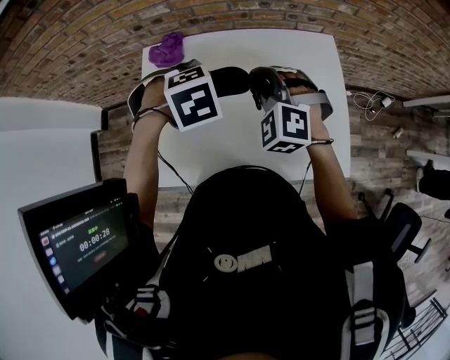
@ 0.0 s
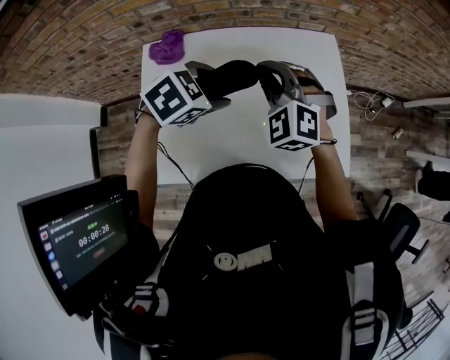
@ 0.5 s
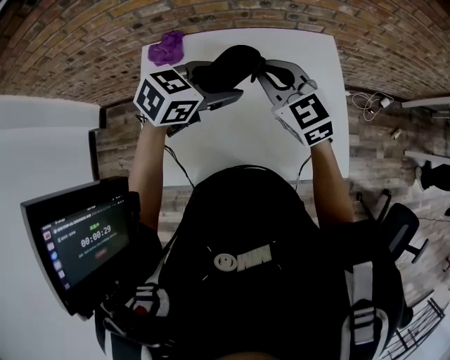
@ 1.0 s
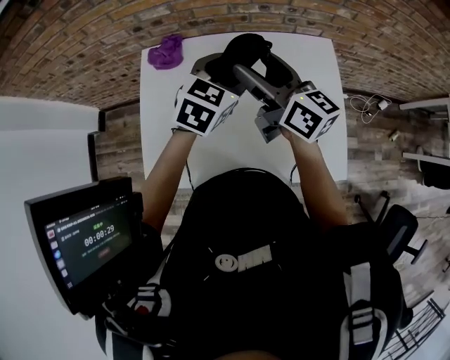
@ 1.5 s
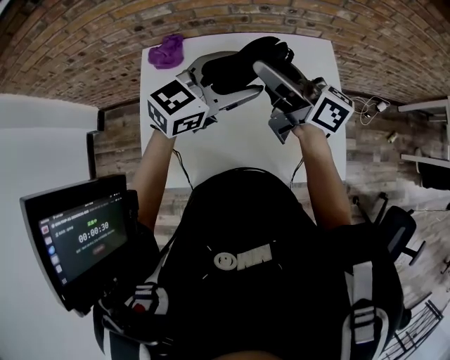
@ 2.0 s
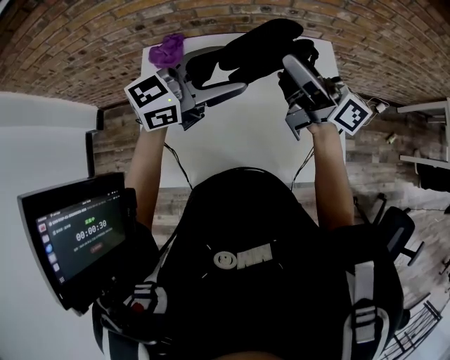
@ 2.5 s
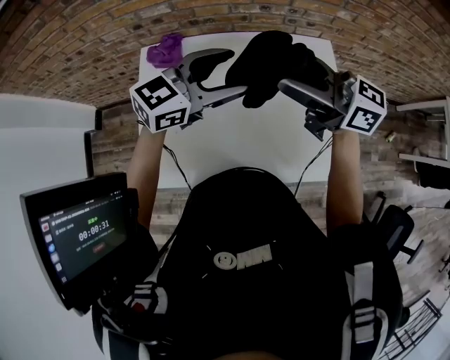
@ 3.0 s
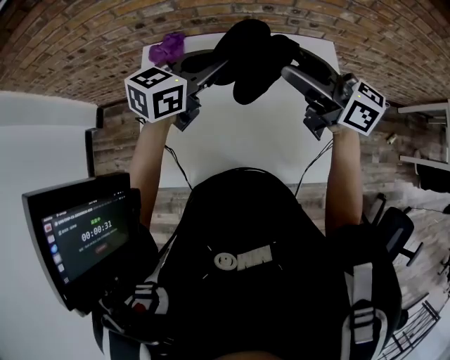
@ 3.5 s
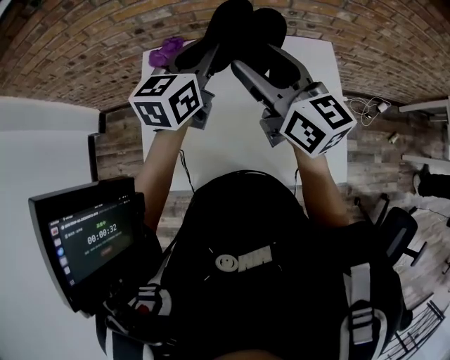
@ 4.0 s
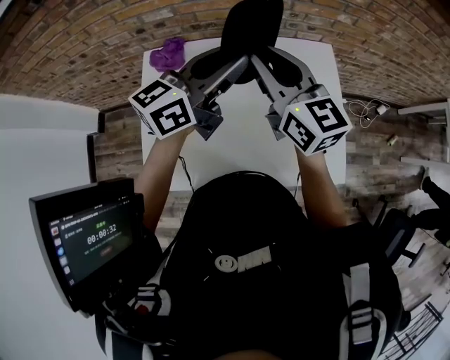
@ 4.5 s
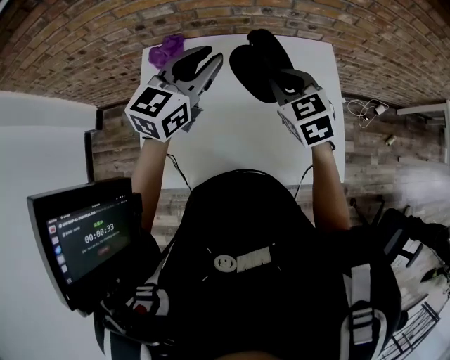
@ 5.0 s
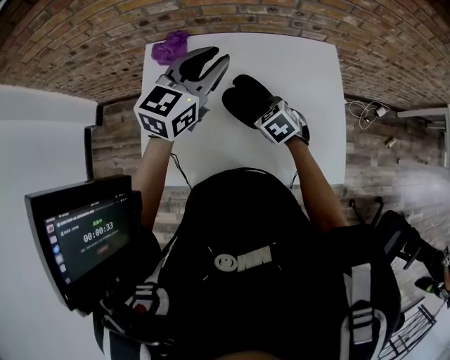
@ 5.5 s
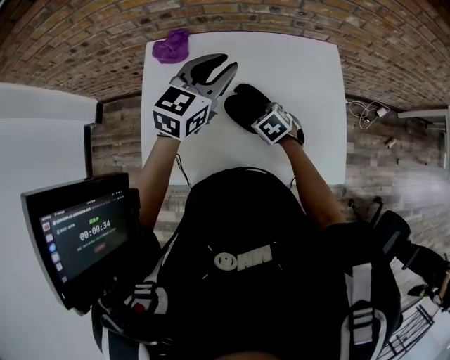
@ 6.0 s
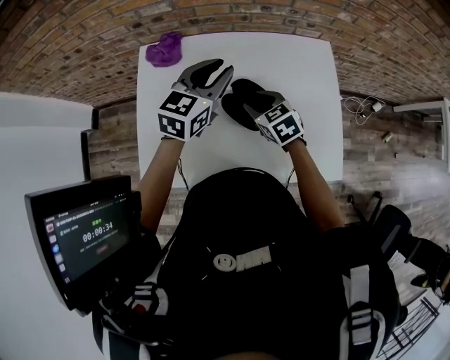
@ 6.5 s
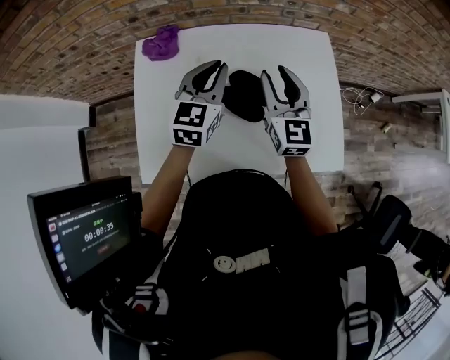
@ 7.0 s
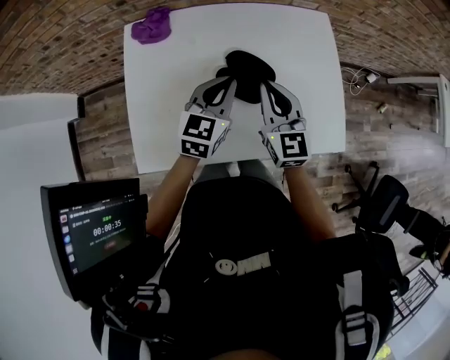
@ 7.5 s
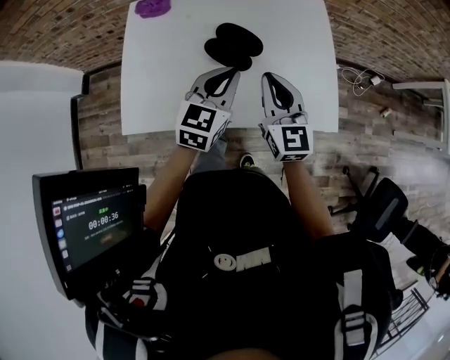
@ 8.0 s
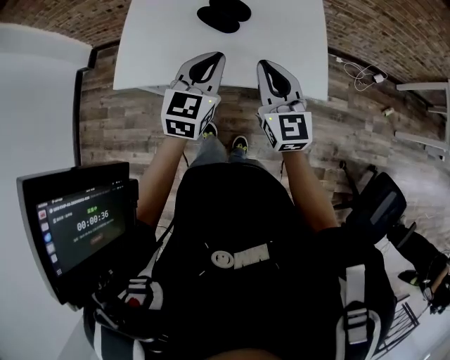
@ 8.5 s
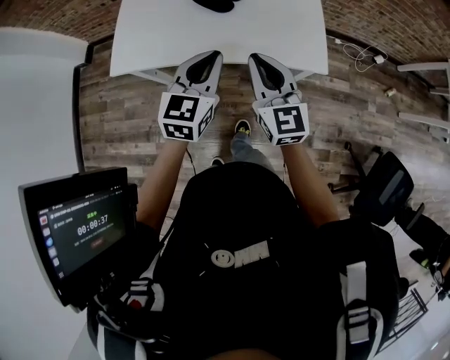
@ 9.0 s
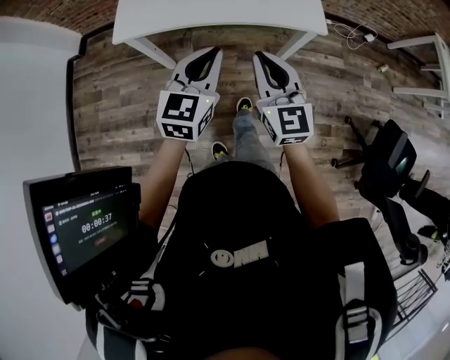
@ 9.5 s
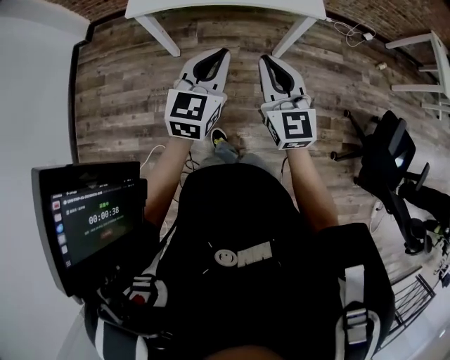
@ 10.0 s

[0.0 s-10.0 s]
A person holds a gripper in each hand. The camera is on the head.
0.0 to 2.0 s: Both grippers travel together upward, about 10 cm. The right gripper twists approximately 90 degrees clockwise, seen from behind, and opens up. The left gripper tips its fingers upward by about 70 degrees.
2.0 to 4.0 s: The right gripper changes its angle by approximately 30 degrees. The left gripper ends up about 10 cm from where it was, turns by approximately 40 degrees, and closes its fingers.
4.0 to 6.0 s: The left gripper shifts roughly 5 cm downward; the right gripper is displaced downward by about 35 cm, tips its fingers downward by roughly 70 degrees, and closes up.
6.0 to 8.0 s: The right gripper heads upward and backward, covering roughly 20 cm, and angles its fingers upward, by roughly 60 degrees; the left gripper travels backward, downward and to the right by approximately 20 cm.
8.0 to 10.0 s: The pair of grippers is taken backward, some 50 cm.

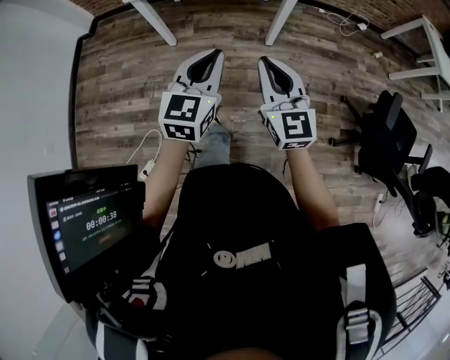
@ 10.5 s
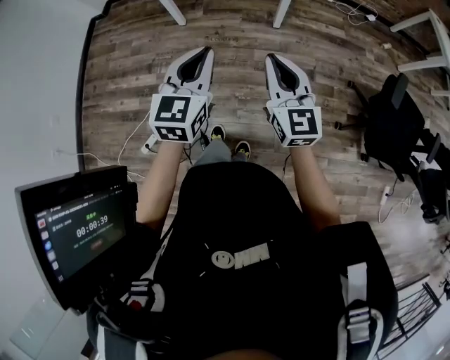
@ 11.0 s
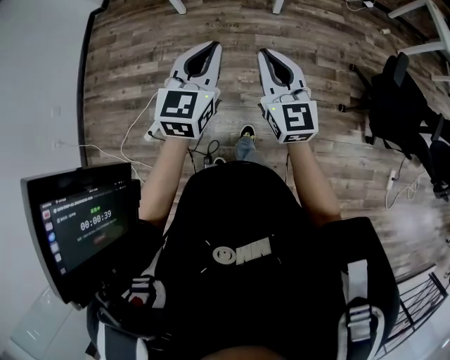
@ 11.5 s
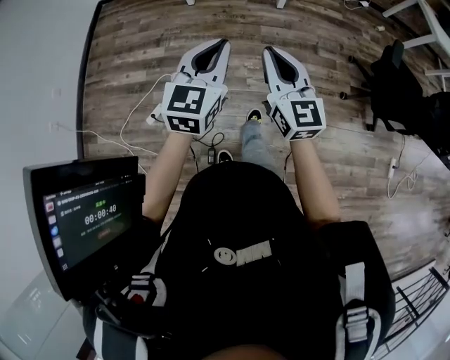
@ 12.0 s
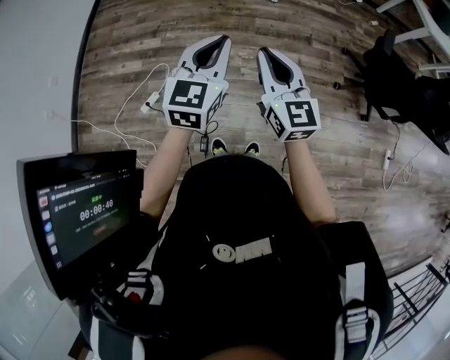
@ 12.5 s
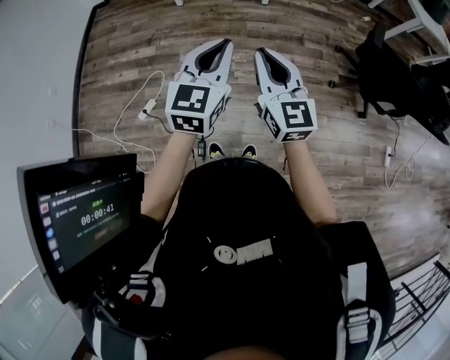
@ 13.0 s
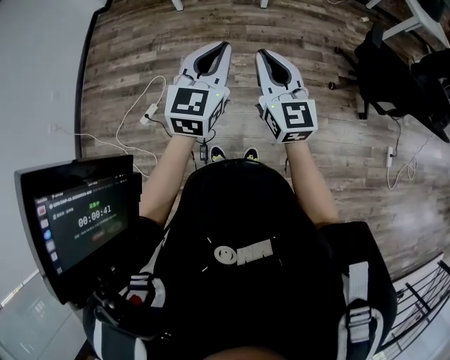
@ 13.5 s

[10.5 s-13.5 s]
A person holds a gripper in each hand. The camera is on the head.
10.5 to 12.0 s: The pair of grippers is taken backward, about 40 cm.
12.0 to 13.5 s: The left gripper shifts some 10 cm to the right and backward. Meanwhile the right gripper shifts roughly 10 cm backward and to the right.

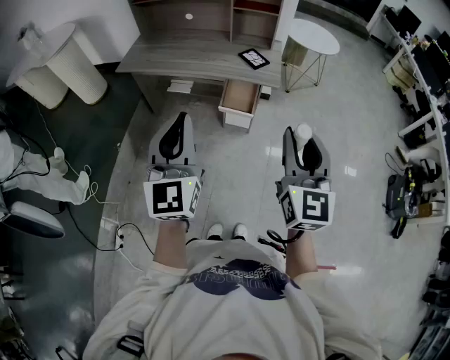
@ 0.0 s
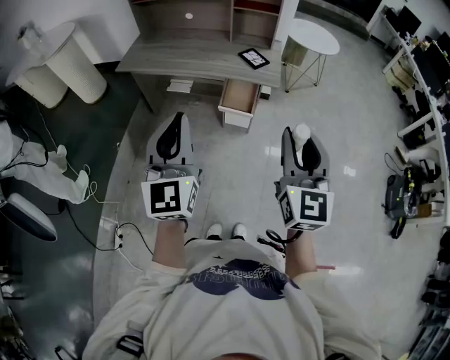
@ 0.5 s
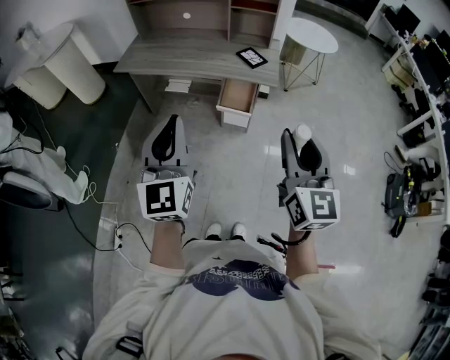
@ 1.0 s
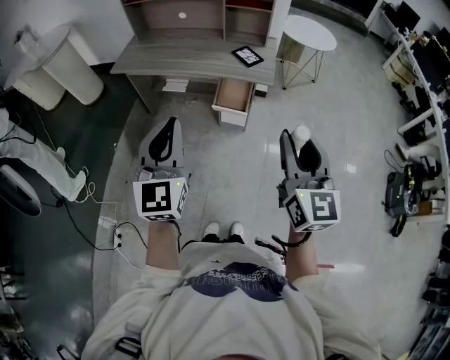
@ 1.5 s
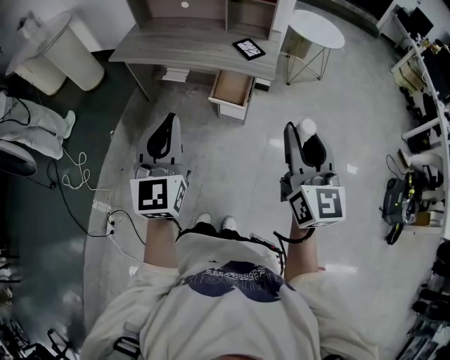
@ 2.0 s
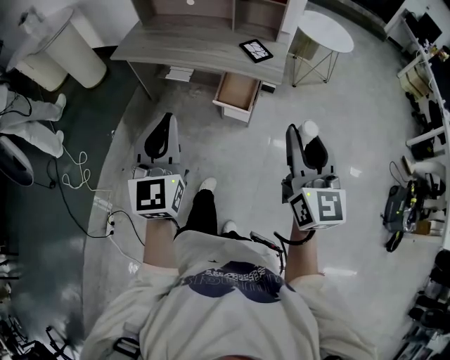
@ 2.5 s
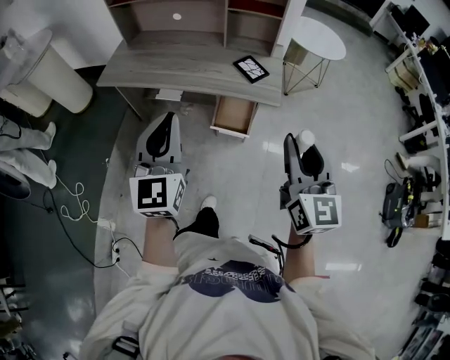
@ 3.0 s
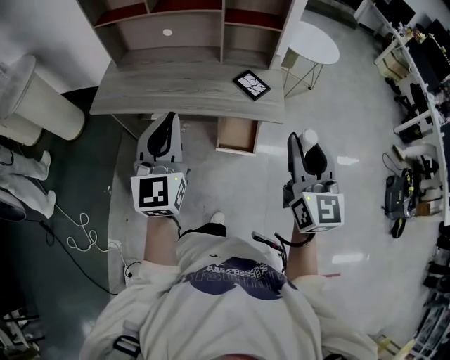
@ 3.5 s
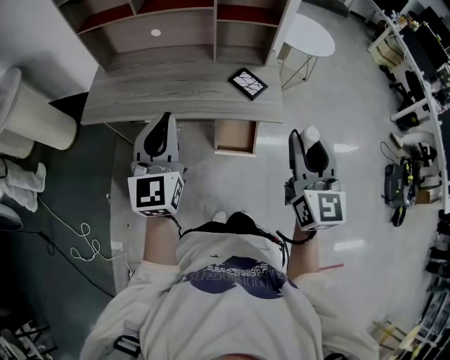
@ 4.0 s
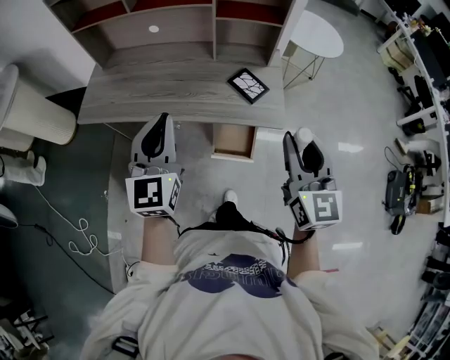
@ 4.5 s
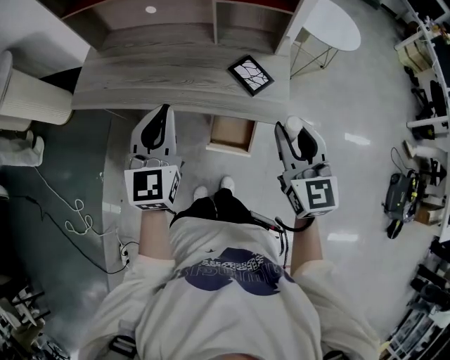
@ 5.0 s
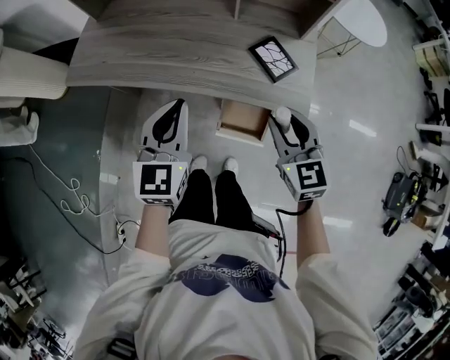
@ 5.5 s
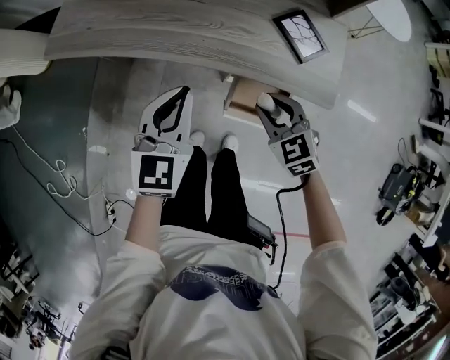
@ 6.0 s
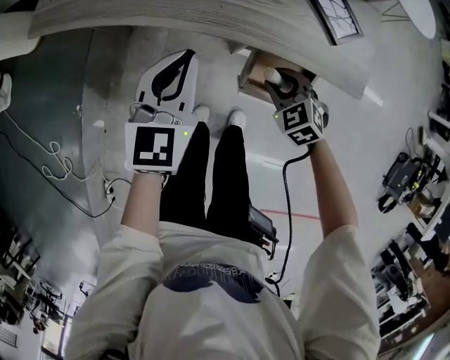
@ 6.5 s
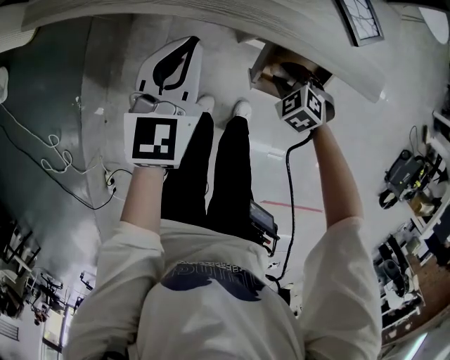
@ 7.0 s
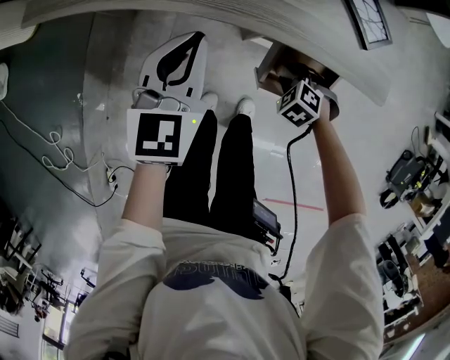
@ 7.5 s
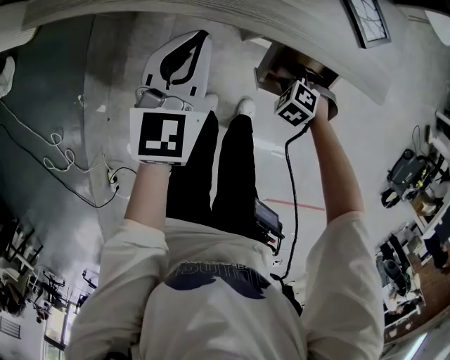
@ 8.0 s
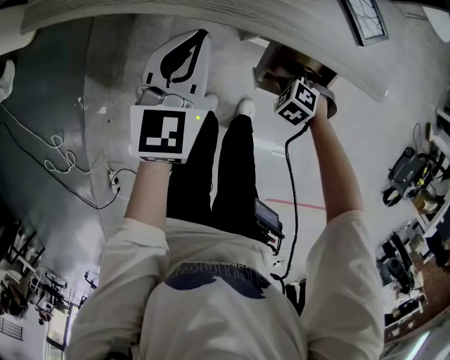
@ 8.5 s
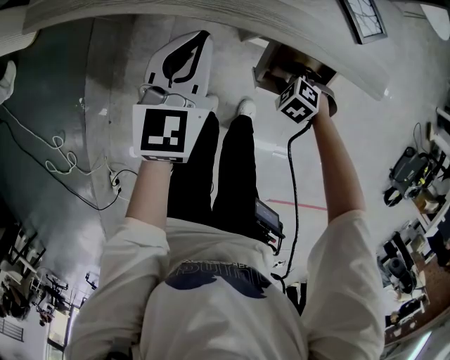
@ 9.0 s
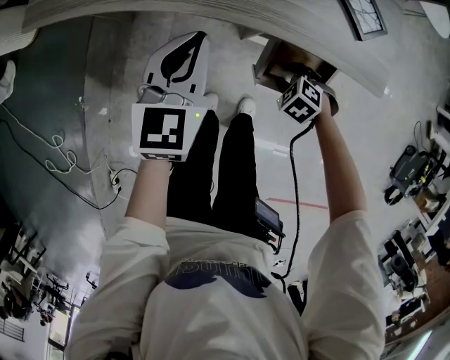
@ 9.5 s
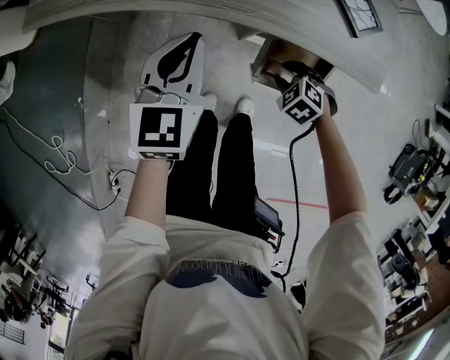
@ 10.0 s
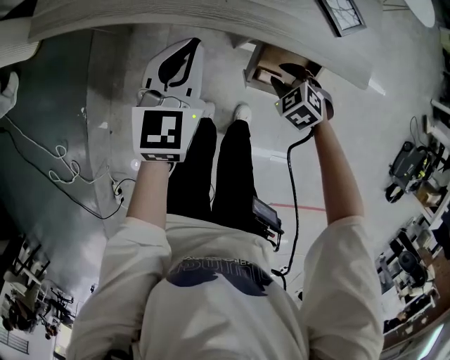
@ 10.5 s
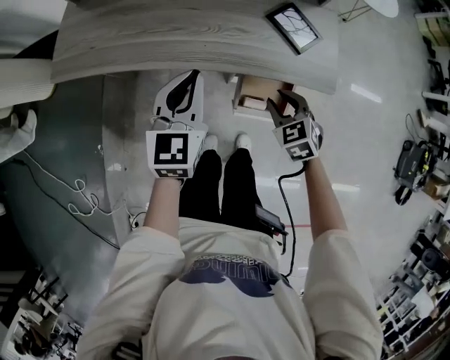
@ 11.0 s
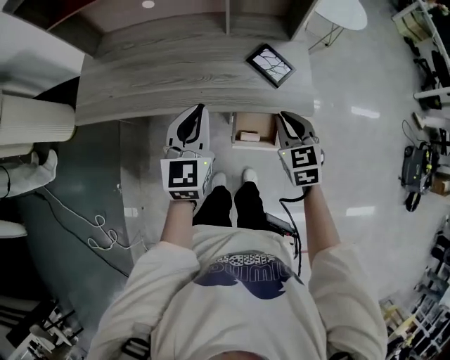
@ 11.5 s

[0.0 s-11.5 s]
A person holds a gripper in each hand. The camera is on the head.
0.0 to 2.0 s: The grippers both shift to the right by roughly 5 cm.
2.0 to 4.0 s: Both grippers travel together forward, about 35 cm.
4.0 to 6.0 s: Both grippers move downward and forward, some 35 cm. The left gripper changes its angle by roughly 20 degrees, while the right gripper tilts its fingers some 40 degrees downward.
6.0 to 7.5 s: The right gripper heads downward, covering roughly 20 cm, and tips its fingers downward by about 30 degrees; the left gripper heads downward, covering some 10 cm.
7.5 to 9.5 s: The grippers make only small movements.
9.5 to 11.5 s: The right gripper shifts some 35 cm upward, points its fingers approximately 40 degrees further upward, and closes its fingers, while the left gripper heads upward, covering roughly 20 cm.

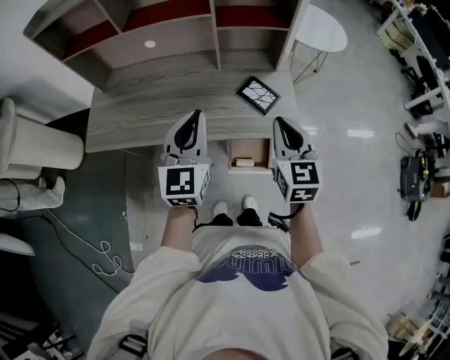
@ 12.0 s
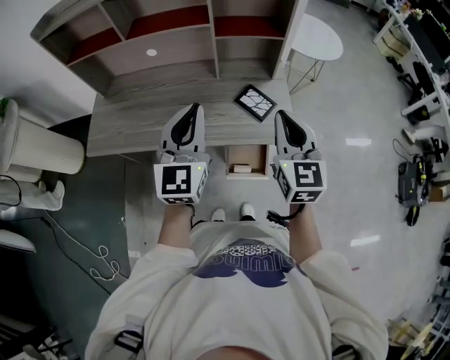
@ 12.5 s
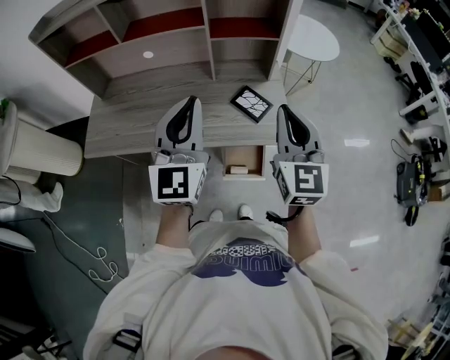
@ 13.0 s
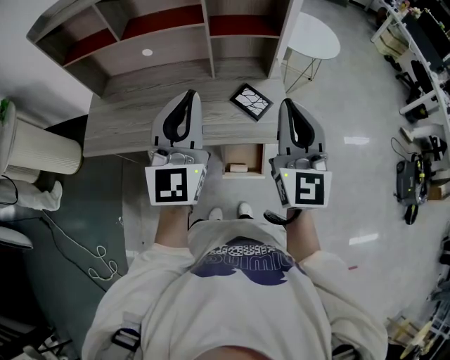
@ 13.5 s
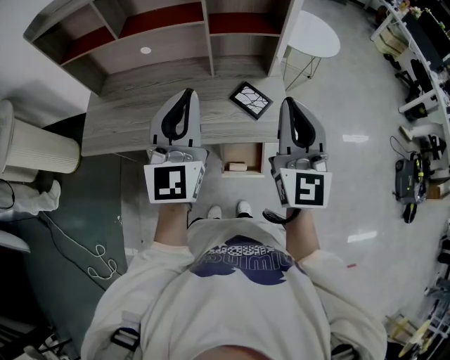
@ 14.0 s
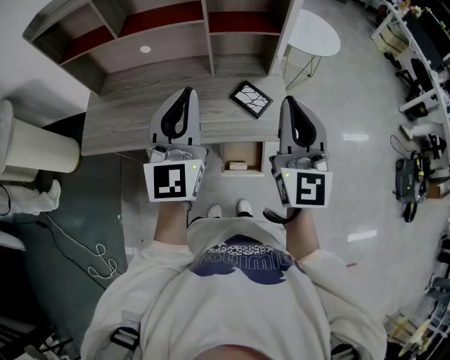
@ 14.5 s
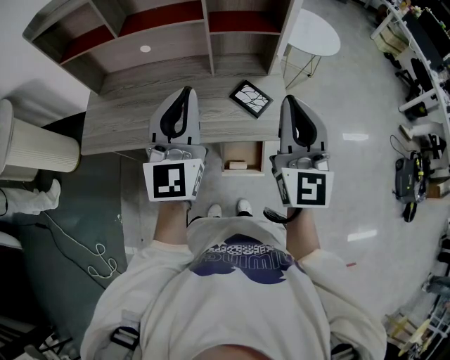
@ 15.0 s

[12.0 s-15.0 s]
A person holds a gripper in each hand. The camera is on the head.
12.0 to 13.5 s: Both grippers move upward, roughly 15 cm. The right gripper turns by approximately 30 degrees.
13.5 to 15.0 s: There are only small adjustments of the grippers.
